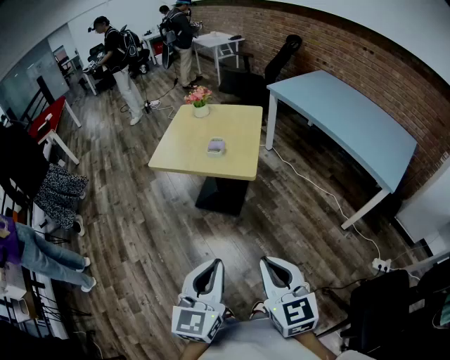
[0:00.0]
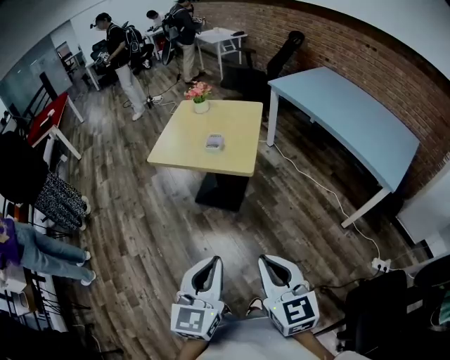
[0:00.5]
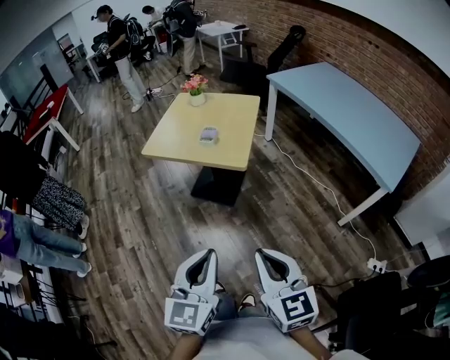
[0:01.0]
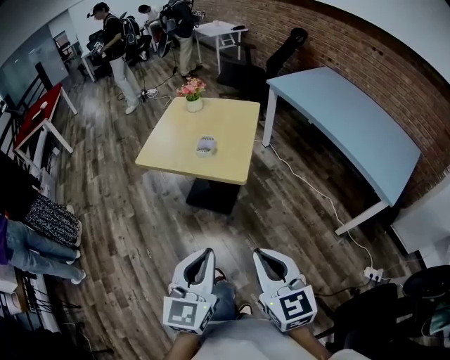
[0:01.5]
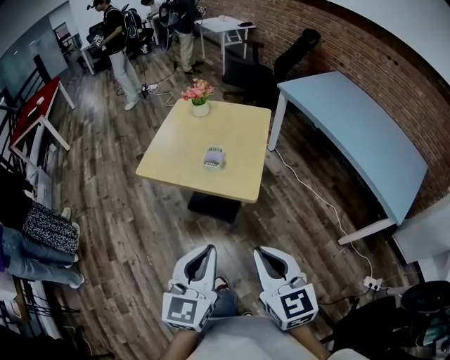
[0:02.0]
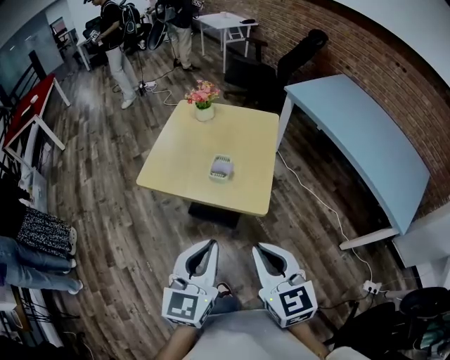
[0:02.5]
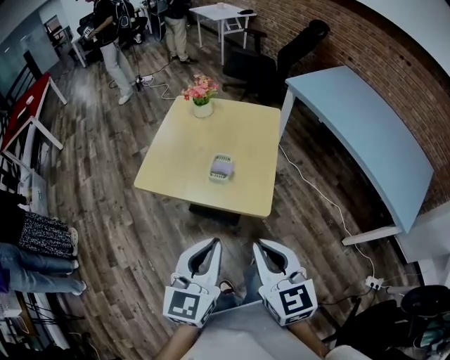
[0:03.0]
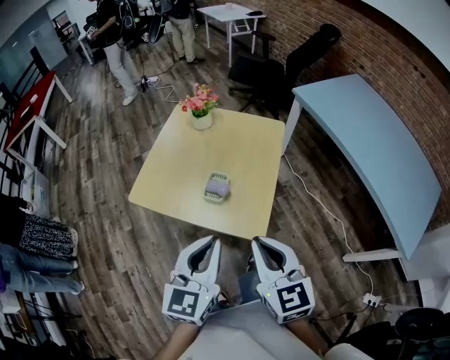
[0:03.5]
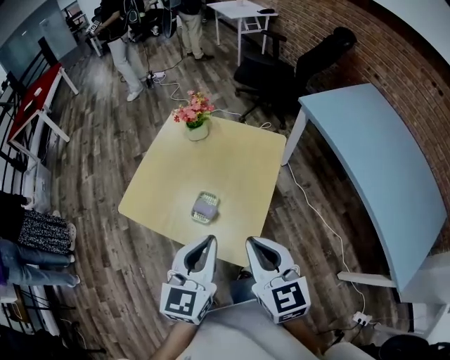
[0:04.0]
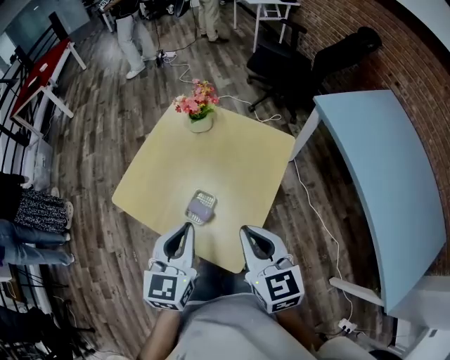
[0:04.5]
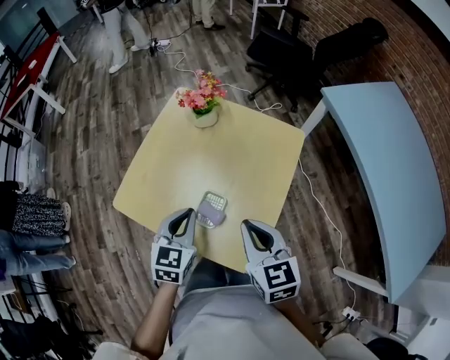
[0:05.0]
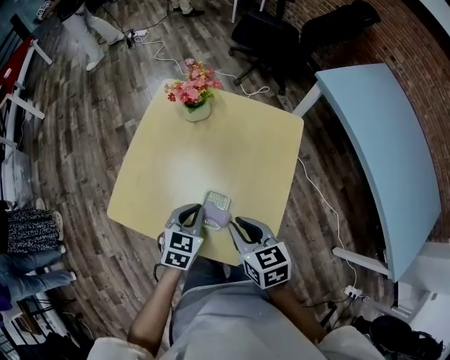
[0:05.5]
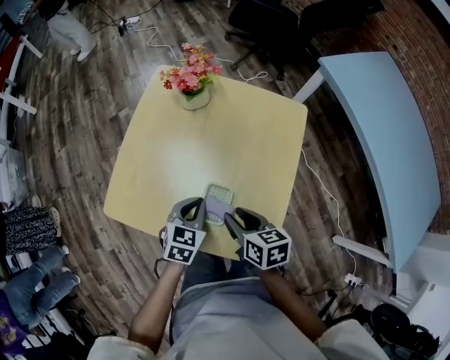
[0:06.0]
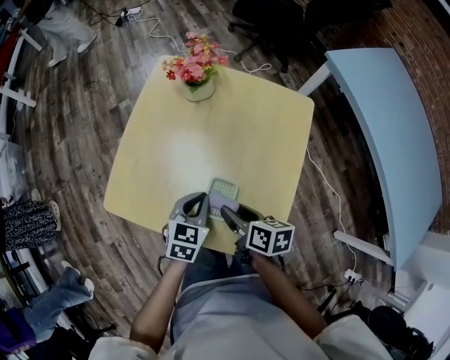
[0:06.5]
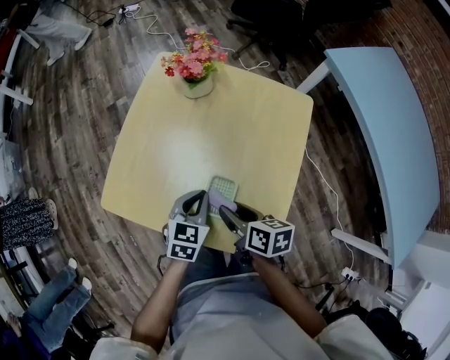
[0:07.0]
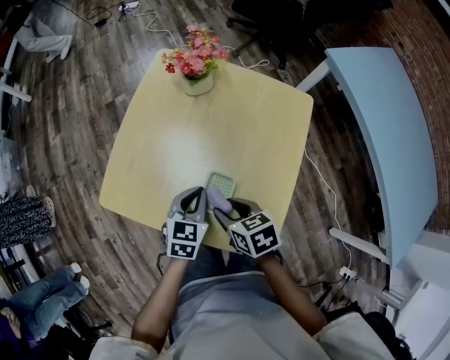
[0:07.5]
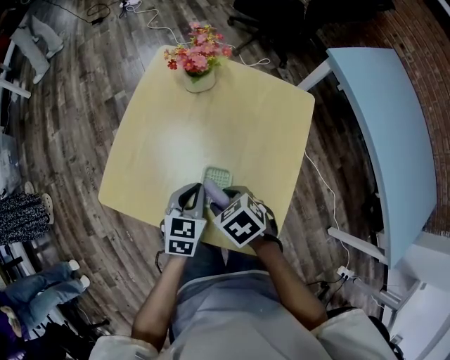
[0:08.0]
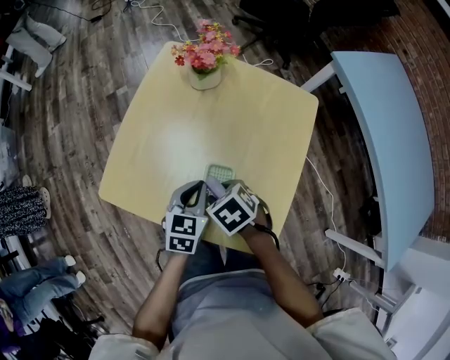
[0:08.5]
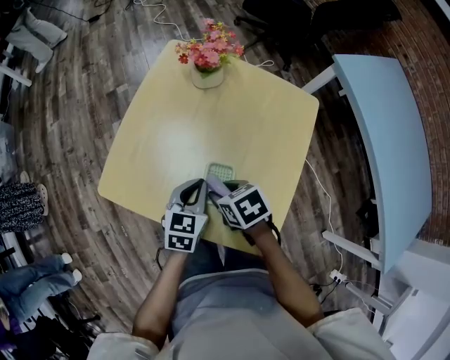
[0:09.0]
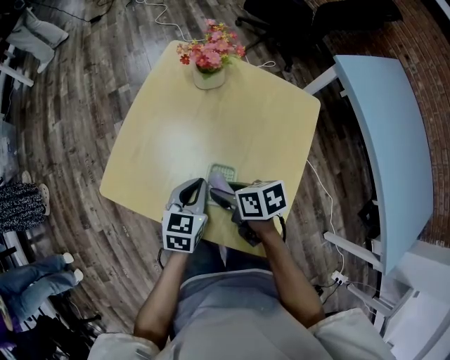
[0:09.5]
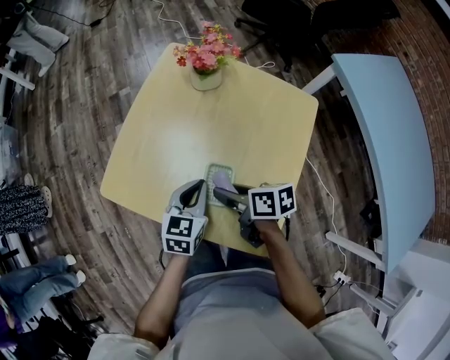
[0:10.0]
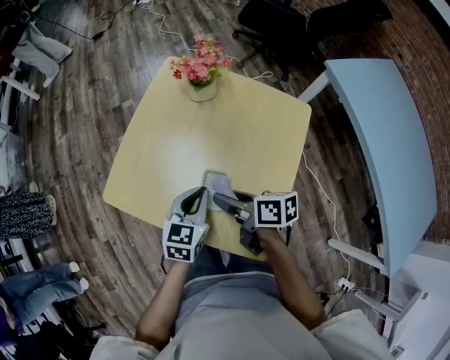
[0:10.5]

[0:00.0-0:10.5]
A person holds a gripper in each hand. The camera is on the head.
0.0 to 2.0 s: Both grippers move forward, about 20 cm.
2.0 to 4.0 s: Both grippers travel together forward, approximately 30 cm.
4.0 to 6.5 s: The right gripper is displaced downward, forward and to the left by about 30 cm, rotates around the line of its fingers by approximately 50 degrees, clockwise from behind, and opens up. The left gripper is displaced downward and forward by about 30 cm, and swivels some 30 degrees.
6.5 to 8.5 s: The right gripper heads to the left, covering approximately 5 cm, and rolls counterclockwise, seen from behind, by some 50 degrees.
8.5 to 10.5 s: The left gripper ends up roughly 5 cm from where it was. The right gripper shifts roughly 5 cm upward, and angles its fingers upward, by approximately 40 degrees.

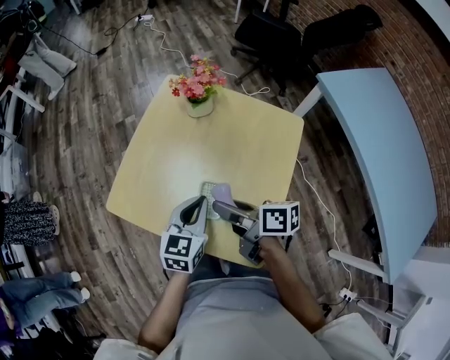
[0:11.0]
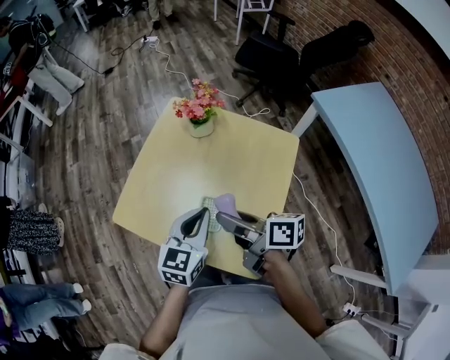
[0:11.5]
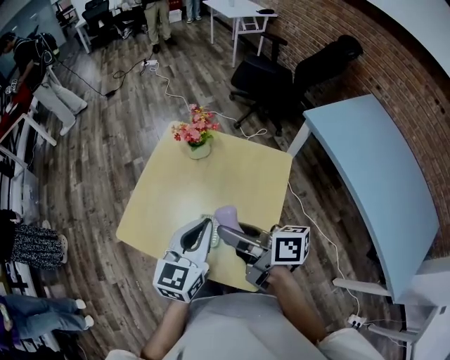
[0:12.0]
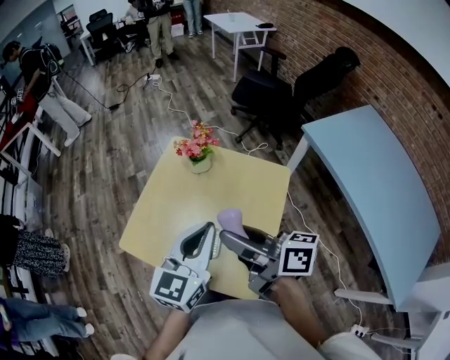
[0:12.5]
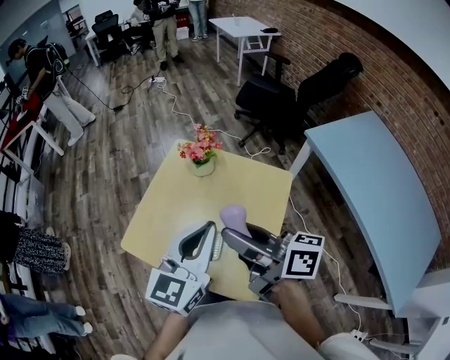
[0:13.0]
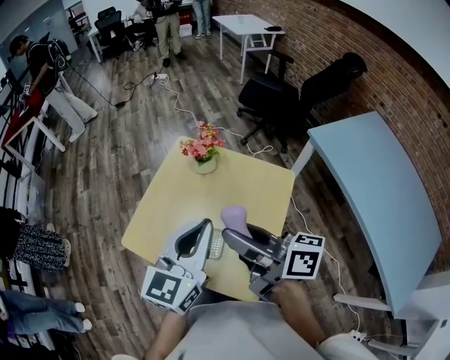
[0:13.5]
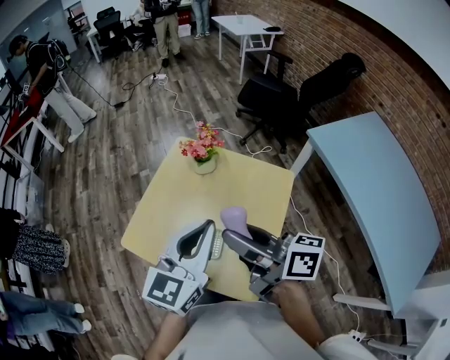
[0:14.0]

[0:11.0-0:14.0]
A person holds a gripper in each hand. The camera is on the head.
11.0 to 12.5 s: Both grippers move upward, roughly 20 cm. The left gripper swivels roughly 20 degrees. The right gripper changes its angle by some 20 degrees.
12.5 to 14.0 s: The grippers make only small movements.

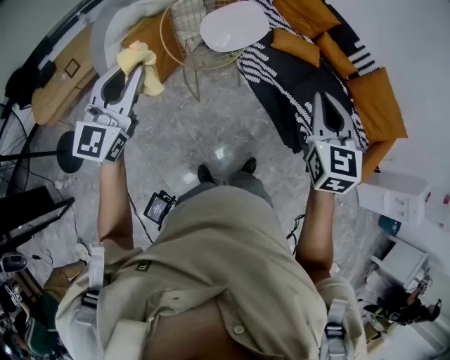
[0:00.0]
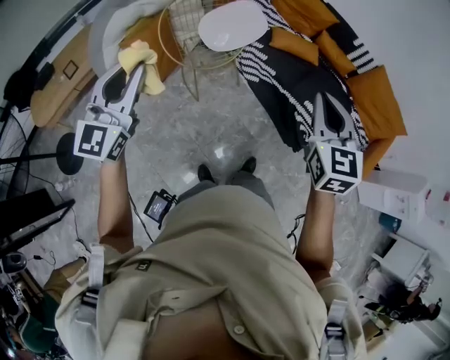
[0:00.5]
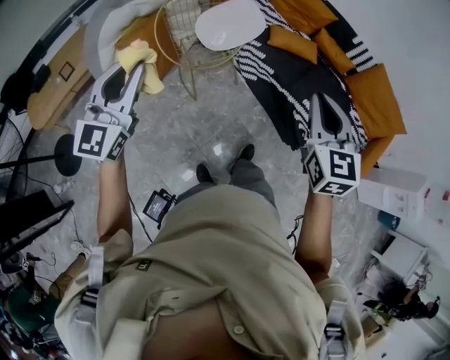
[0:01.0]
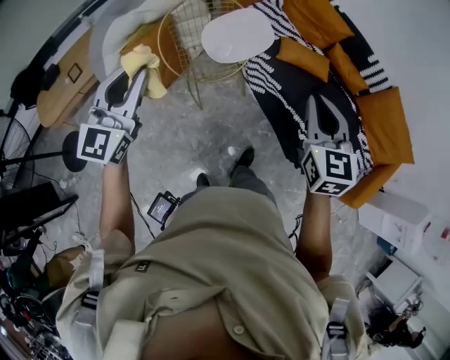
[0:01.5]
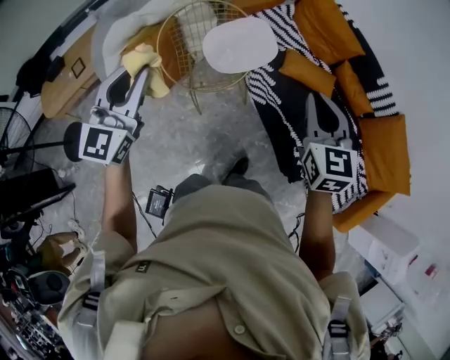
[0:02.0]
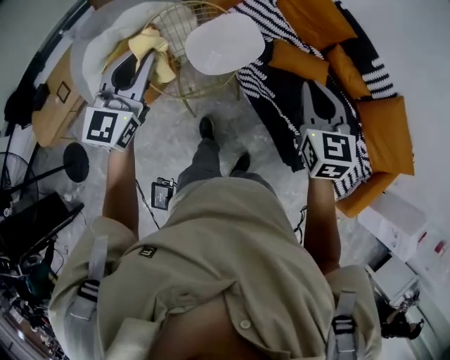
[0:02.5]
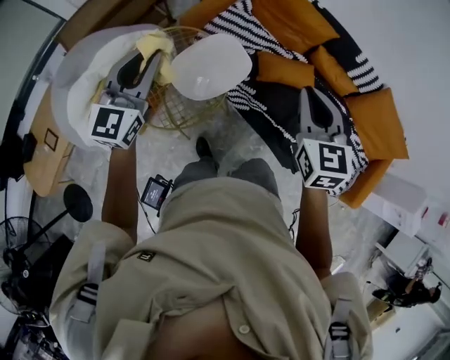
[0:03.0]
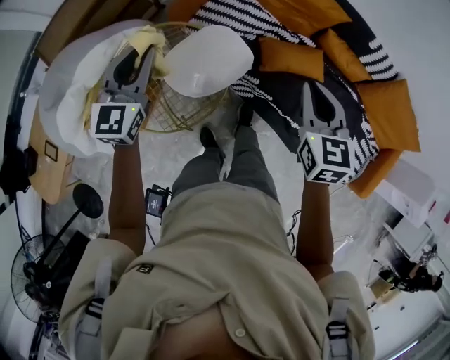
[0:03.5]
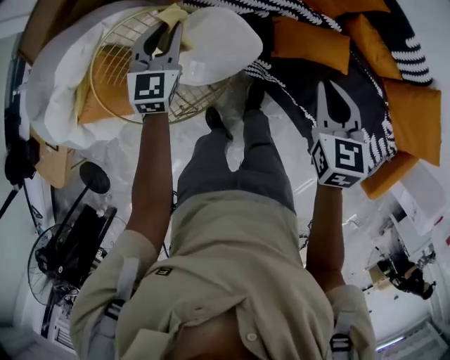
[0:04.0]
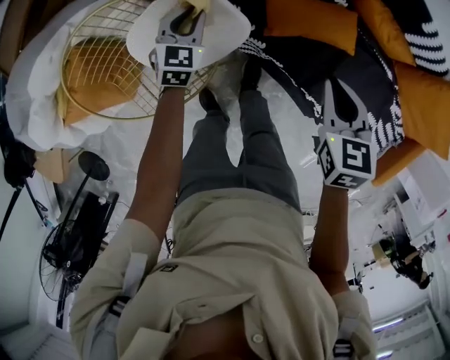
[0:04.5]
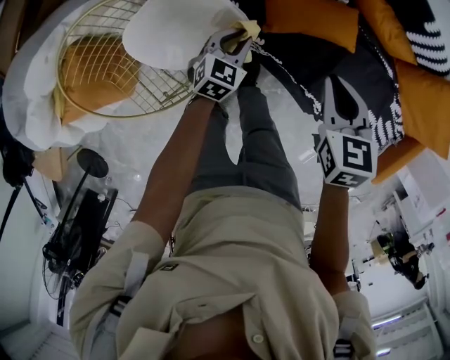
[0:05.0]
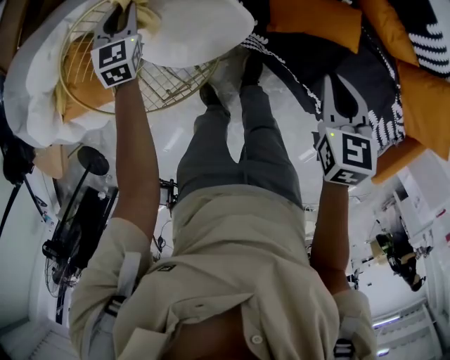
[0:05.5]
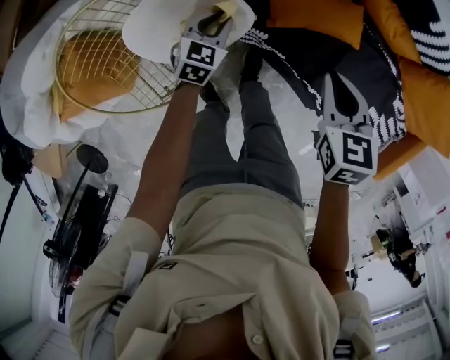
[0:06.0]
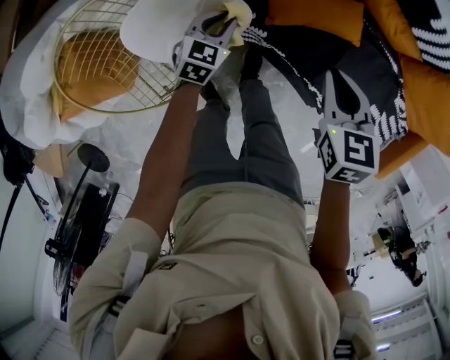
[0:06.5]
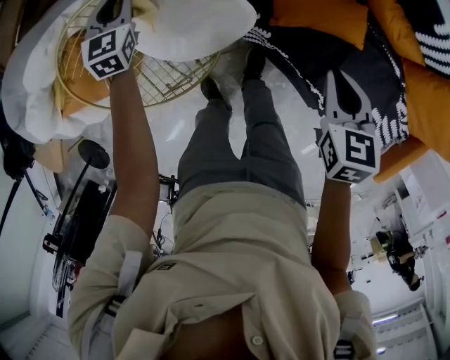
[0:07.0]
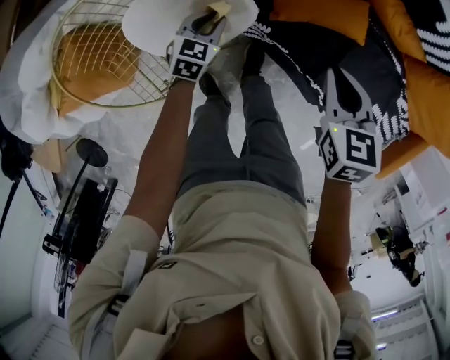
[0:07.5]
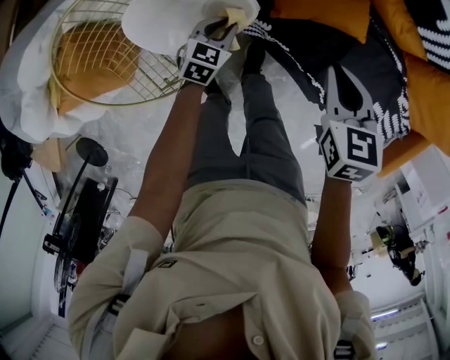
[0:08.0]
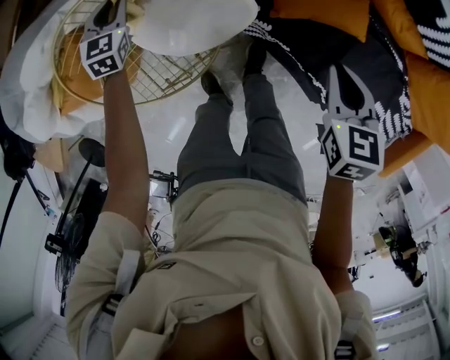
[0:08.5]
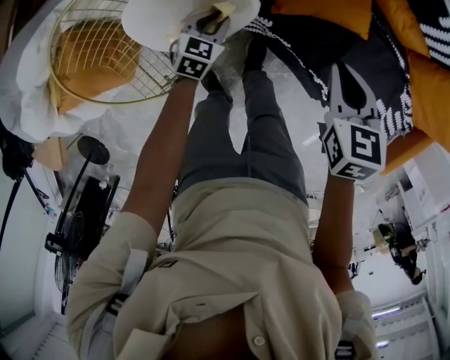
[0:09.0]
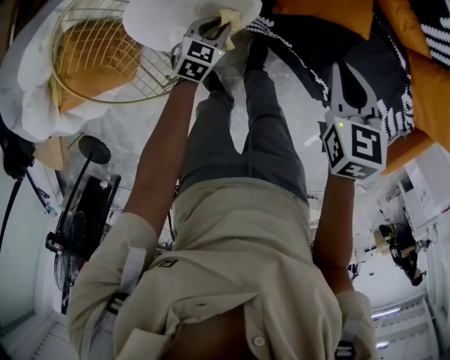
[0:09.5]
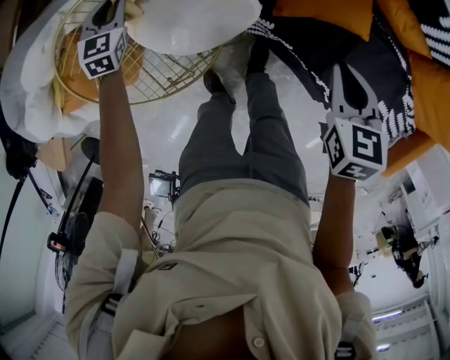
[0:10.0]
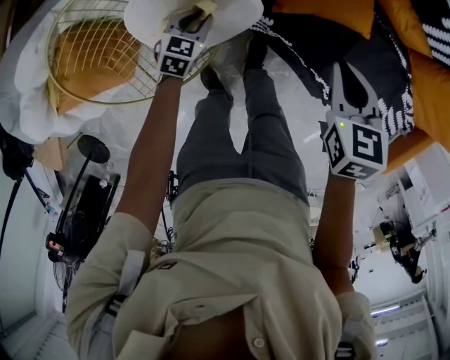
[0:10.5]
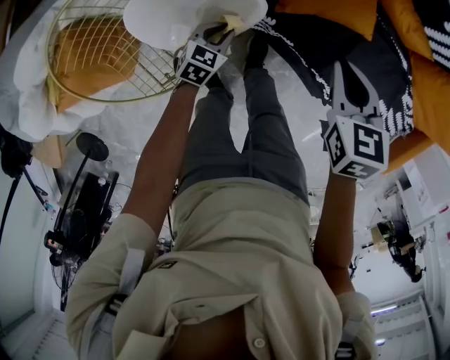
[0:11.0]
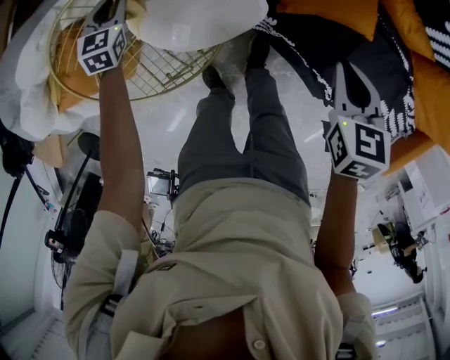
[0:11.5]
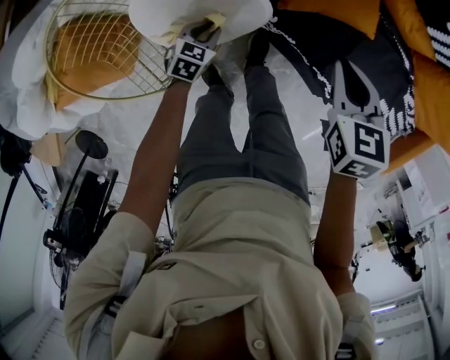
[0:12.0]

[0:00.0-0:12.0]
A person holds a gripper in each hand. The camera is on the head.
0.0 to 2.0 s: The grippers both shift forward by approximately 25 cm.
2.0 to 4.0 s: The left gripper travels forward and downward by about 60 cm, and swivels about 20 degrees; the right gripper travels forward and downward by approximately 40 cm, and rotates about 30 degrees.
4.0 to 6.0 s: The right gripper travels downward by about 10 cm. The left gripper goes left and right, some 30 cm each way, reversing 2 times, and turns by roughly 30 degrees.
6.0 to 8.0 s: The left gripper goes to the left and returns, about 25 cm each way.
8.0 to 10.0 s: The left gripper moves left and right over approximately 25 cm, changing direction 2 times, and swivels roughly 30 degrees.
10.0 to 12.0 s: The left gripper swings left and right, about 25 cm each way, with 2 reversals, and turns by about 30 degrees.

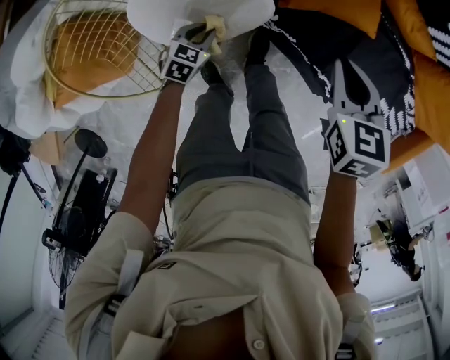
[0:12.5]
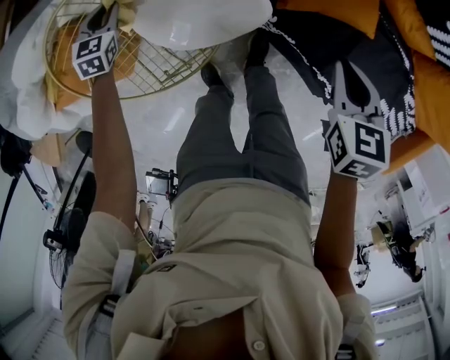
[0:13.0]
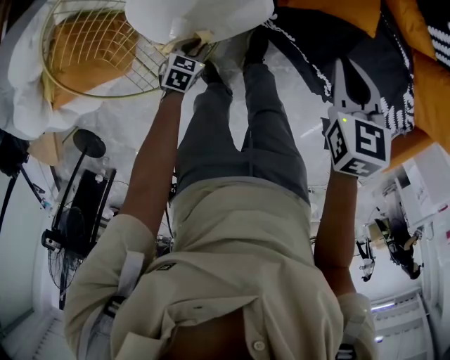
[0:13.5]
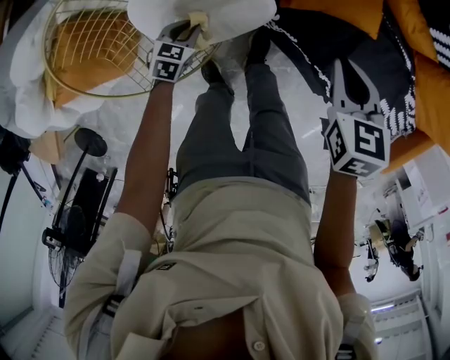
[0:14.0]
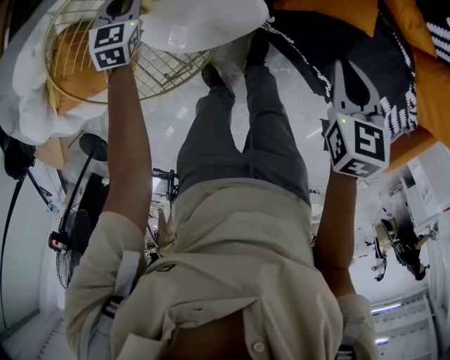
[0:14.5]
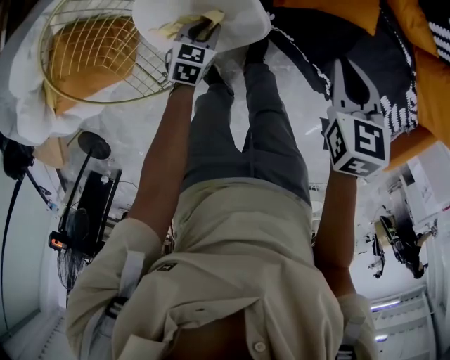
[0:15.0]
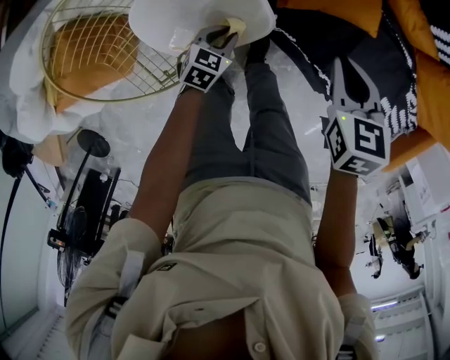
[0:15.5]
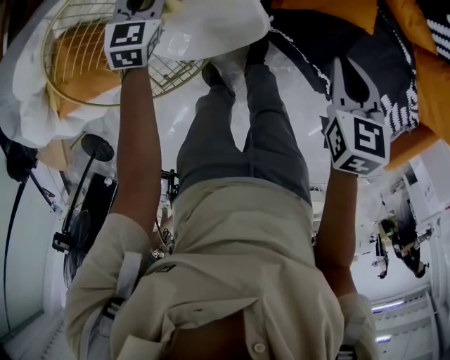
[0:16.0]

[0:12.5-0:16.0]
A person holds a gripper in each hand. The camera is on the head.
12.5 to 14.5 s: The left gripper goes up and down, approximately 15 cm each way, reversing 2 times, and swivels about 30 degrees.
14.5 to 16.0 s: The left gripper reaches about 20 cm to the right, then returns.
